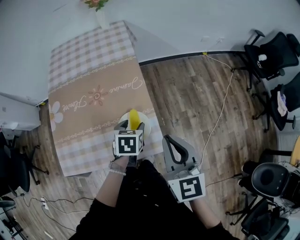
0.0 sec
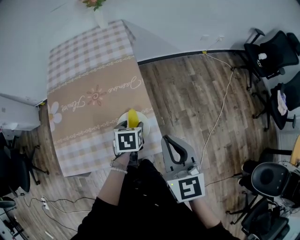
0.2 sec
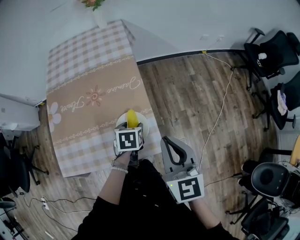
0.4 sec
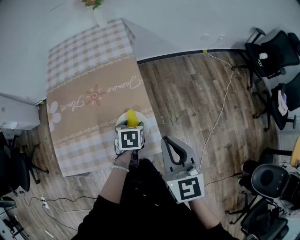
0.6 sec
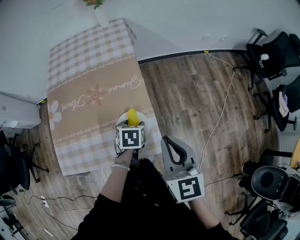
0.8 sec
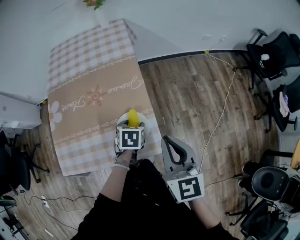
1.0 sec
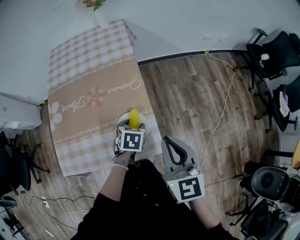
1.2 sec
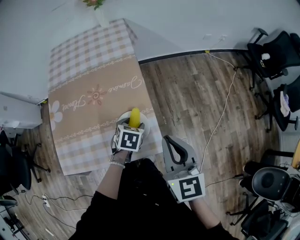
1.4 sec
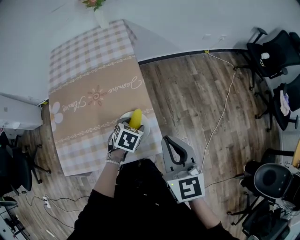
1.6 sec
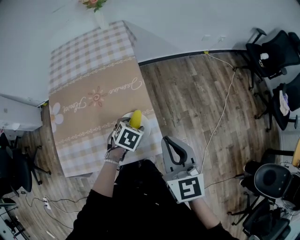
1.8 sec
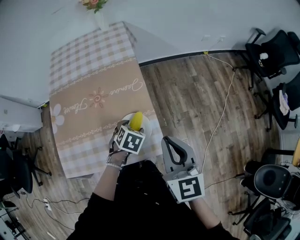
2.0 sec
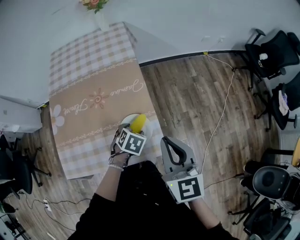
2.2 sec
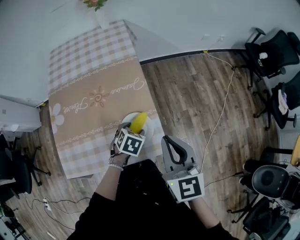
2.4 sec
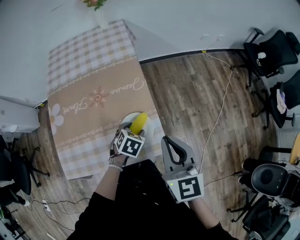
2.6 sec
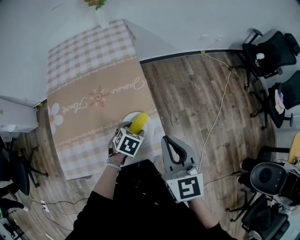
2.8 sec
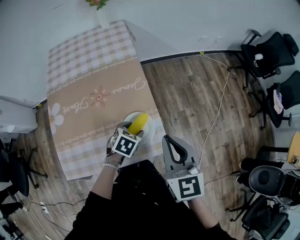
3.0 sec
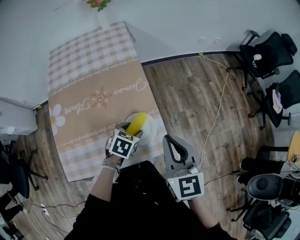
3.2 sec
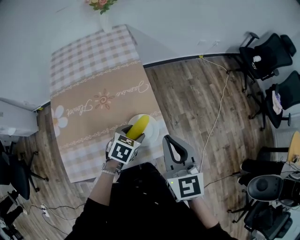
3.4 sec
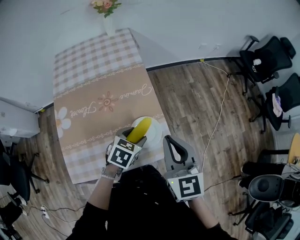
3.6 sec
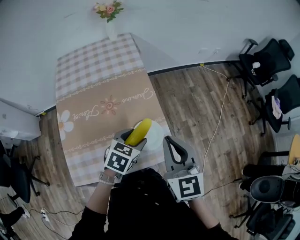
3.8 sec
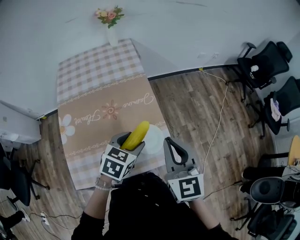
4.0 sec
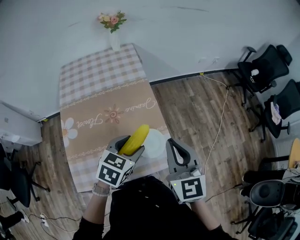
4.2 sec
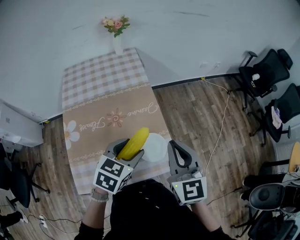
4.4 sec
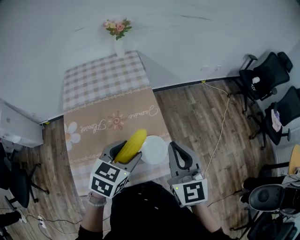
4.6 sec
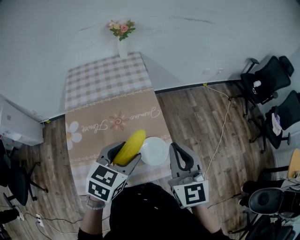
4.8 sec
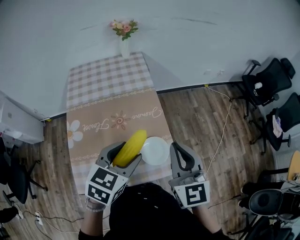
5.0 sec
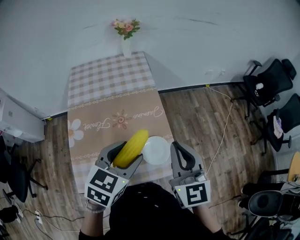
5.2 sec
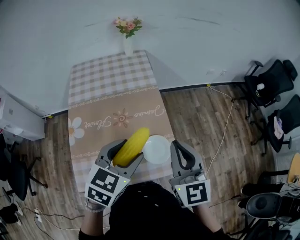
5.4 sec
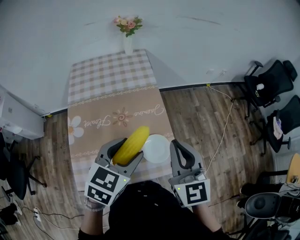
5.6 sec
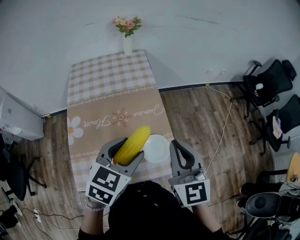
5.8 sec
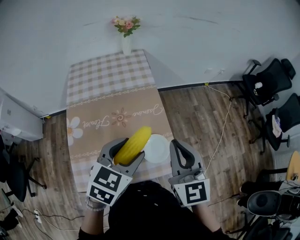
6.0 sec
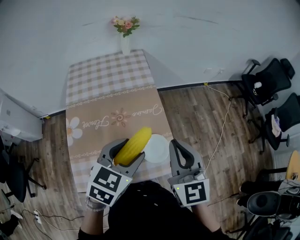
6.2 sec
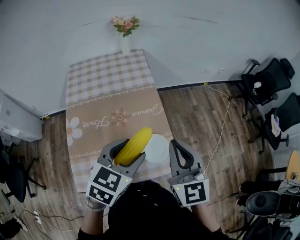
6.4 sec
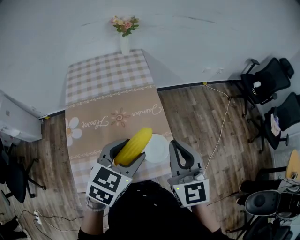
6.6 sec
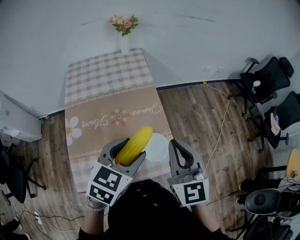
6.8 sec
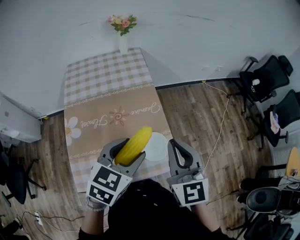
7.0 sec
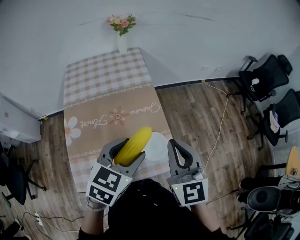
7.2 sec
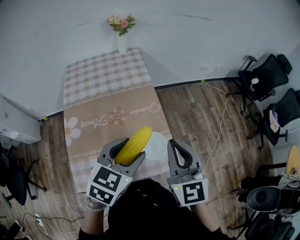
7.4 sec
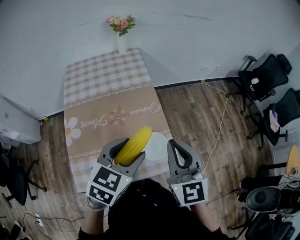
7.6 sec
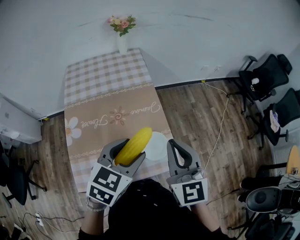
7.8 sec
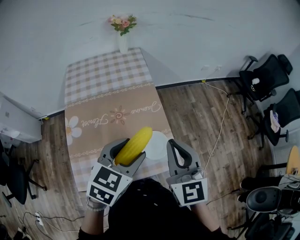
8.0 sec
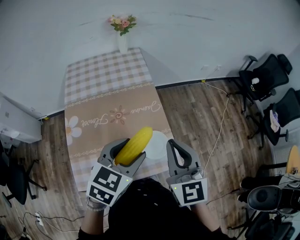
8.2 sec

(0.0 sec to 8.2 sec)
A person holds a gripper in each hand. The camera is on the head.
0.0 sec - 1.6 sec: The left gripper turns by roughly 20 degrees.
1.6 sec - 3.2 sec: There are only small adjustments of the grippers.
3.2 sec - 5.0 sec: The right gripper is displaced upward and to the left by about 10 cm; the left gripper moves upward, some 25 cm, and changes its angle by roughly 20 degrees.
5.0 sec - 8.2 sec: There are only small adjustments of the grippers.

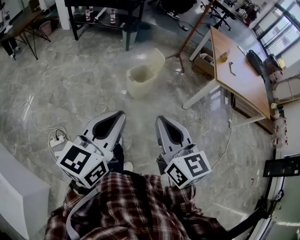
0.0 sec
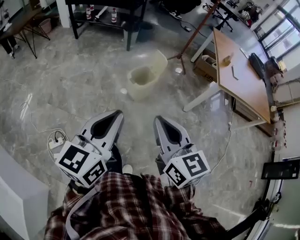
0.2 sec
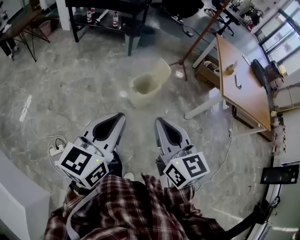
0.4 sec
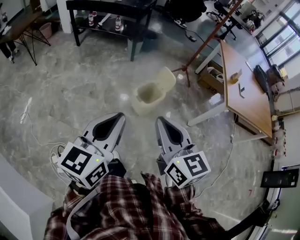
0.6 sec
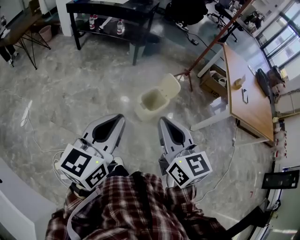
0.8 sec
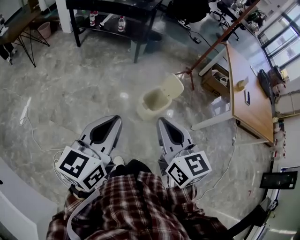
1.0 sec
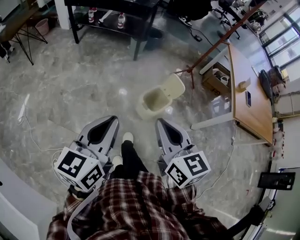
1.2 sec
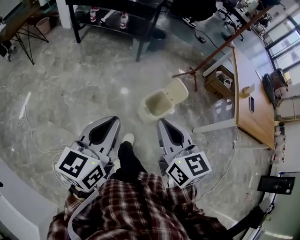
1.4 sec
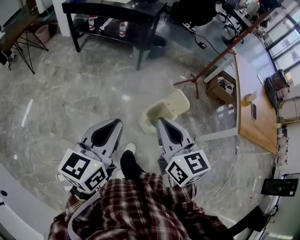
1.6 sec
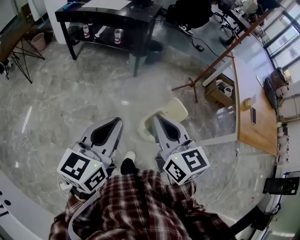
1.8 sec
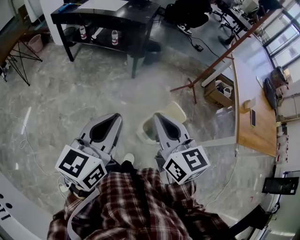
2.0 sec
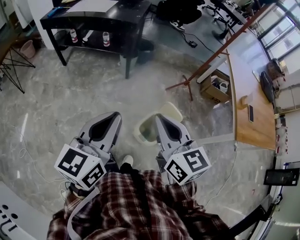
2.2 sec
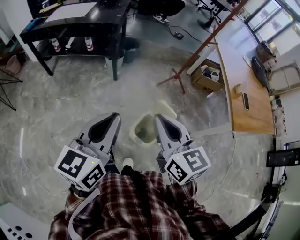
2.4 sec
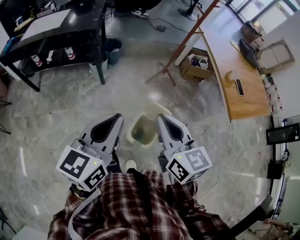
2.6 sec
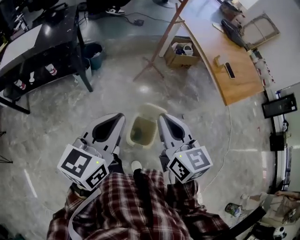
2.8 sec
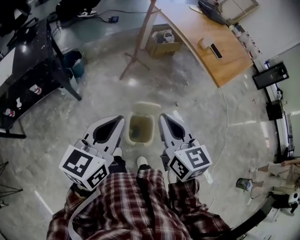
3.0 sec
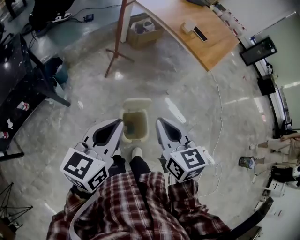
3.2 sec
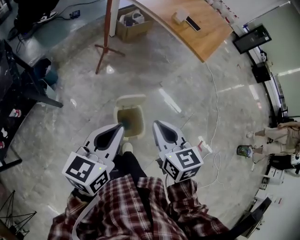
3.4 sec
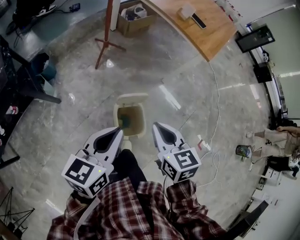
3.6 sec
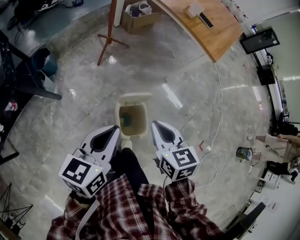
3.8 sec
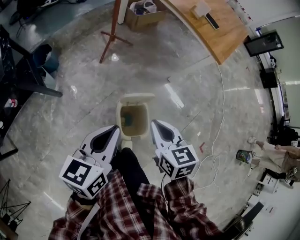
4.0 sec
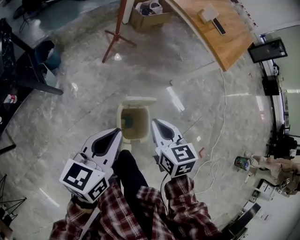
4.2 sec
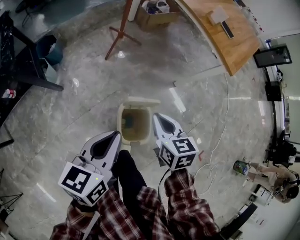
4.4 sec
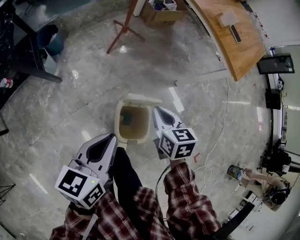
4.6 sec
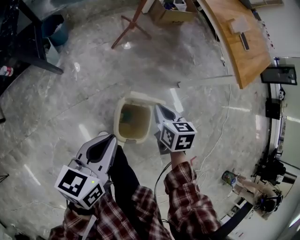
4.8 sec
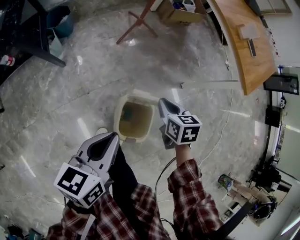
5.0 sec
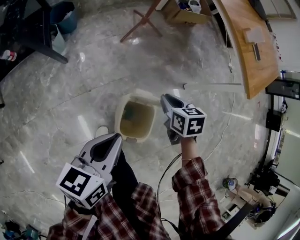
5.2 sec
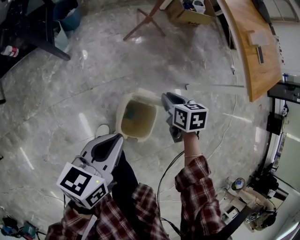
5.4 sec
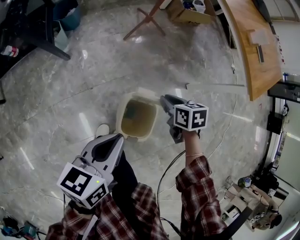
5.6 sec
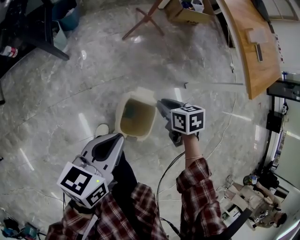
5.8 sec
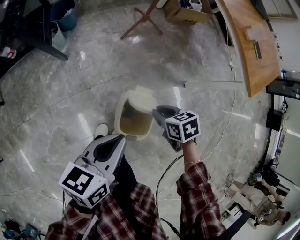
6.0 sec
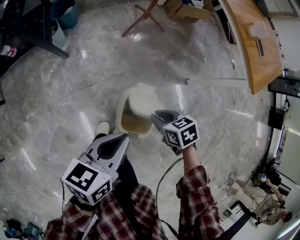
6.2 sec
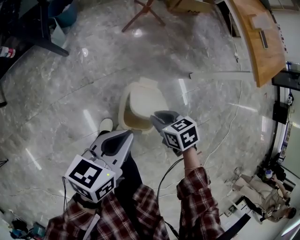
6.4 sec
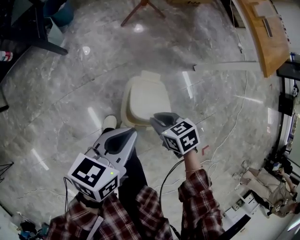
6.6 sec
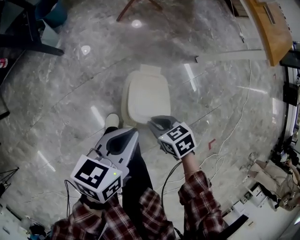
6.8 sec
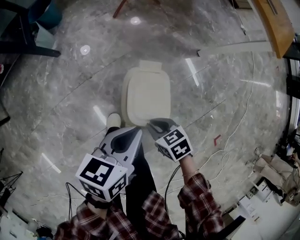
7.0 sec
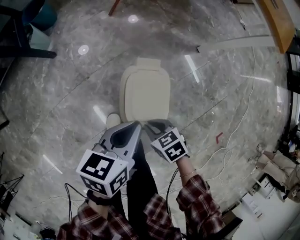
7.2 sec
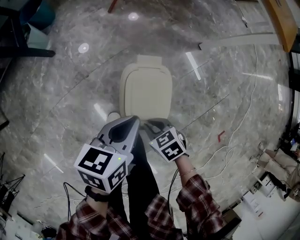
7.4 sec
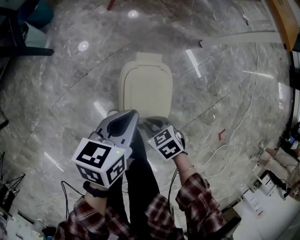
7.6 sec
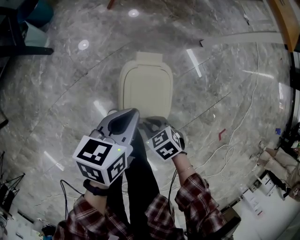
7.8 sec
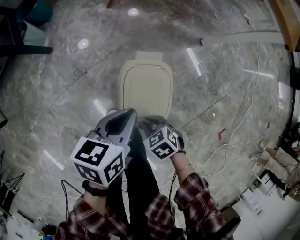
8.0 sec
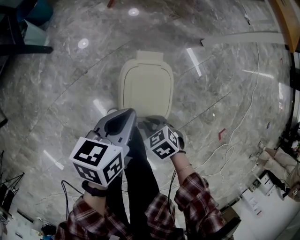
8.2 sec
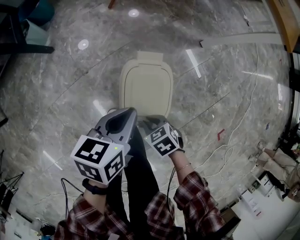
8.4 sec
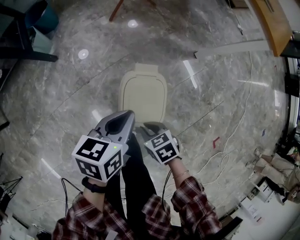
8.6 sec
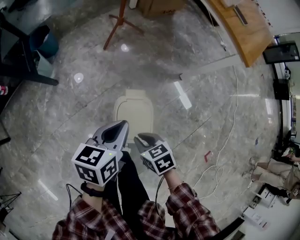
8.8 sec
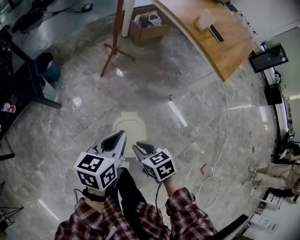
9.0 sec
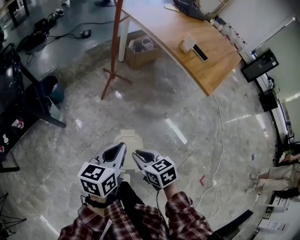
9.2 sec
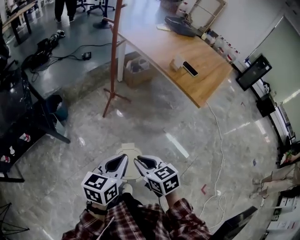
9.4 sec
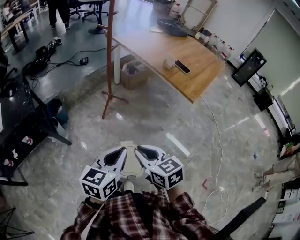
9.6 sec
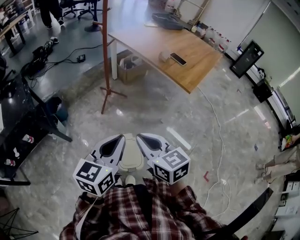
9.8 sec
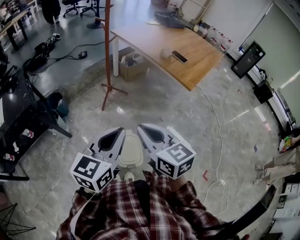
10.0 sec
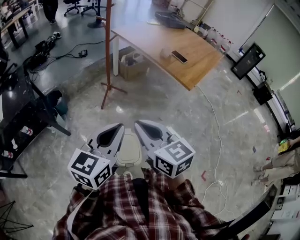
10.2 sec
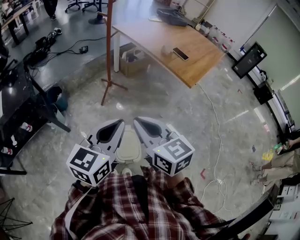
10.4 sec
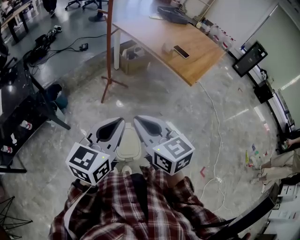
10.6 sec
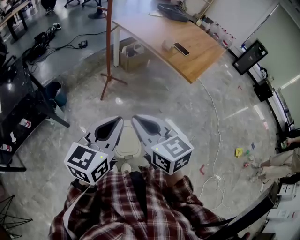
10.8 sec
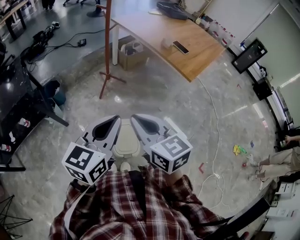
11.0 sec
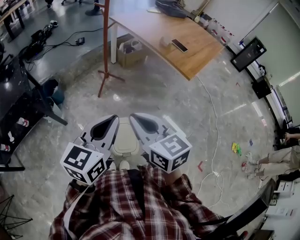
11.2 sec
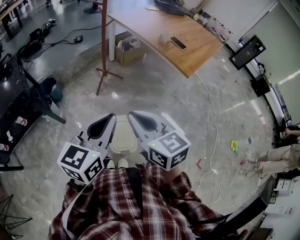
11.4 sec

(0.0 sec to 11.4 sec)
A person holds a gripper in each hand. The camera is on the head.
0.0 sec - 1.4 sec: Both grippers are carried forward and to the left, roughly 40 cm.
1.4 sec - 2.8 sec: The right gripper ends up about 35 cm from where it was, and swivels roughly 40 degrees; the left gripper moves roughly 40 cm, and rotates roughly 40 degrees.
2.8 sec - 4.2 sec: Both grippers move downward, some 20 cm. The left gripper rotates approximately 30 degrees, while the right gripper turns by some 30 degrees.
4.2 sec - 5.6 sec: The left gripper moves downward, some 10 cm; the right gripper moves downward and forward, roughly 20 cm, and rotates roughly 30 degrees.
5.6 sec - 7.2 sec: The right gripper goes approximately 30 cm backward and downward; the left gripper is displaced downward and to the right by roughly 20 cm.
7.2 sec - 8.6 sec: There are only small adjustments of the grippers.
8.6 sec - 10.0 sec: Both grippers travel together upward, about 50 cm. The left gripper changes its angle by some 40 degrees; the right gripper angles its fingers upward, by some 50 degrees.
10.0 sec - 11.4 sec: The grippers stay close to where they were, moving slightly.

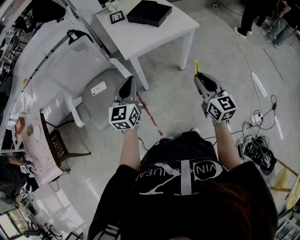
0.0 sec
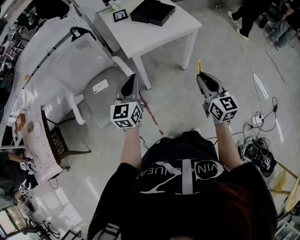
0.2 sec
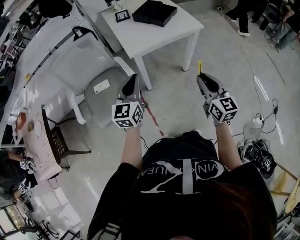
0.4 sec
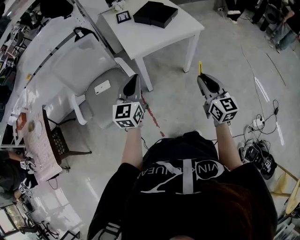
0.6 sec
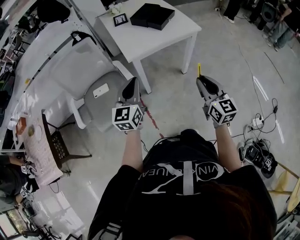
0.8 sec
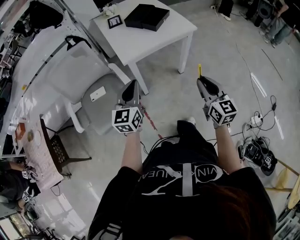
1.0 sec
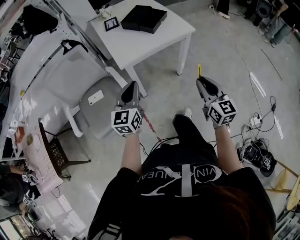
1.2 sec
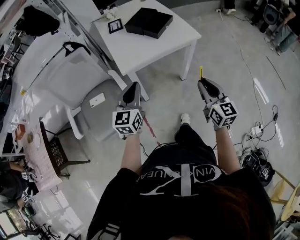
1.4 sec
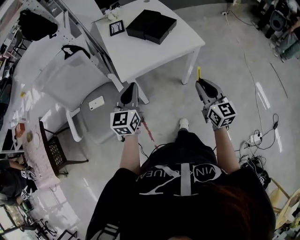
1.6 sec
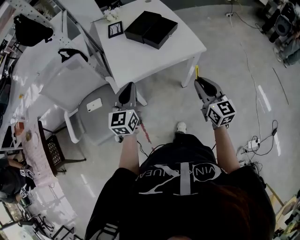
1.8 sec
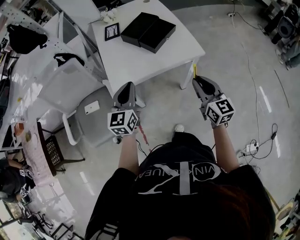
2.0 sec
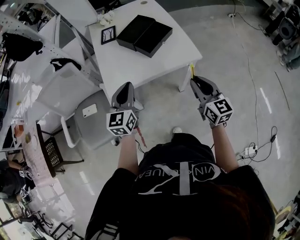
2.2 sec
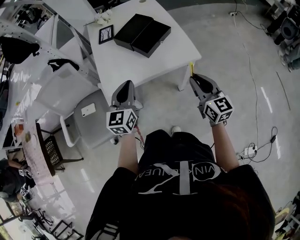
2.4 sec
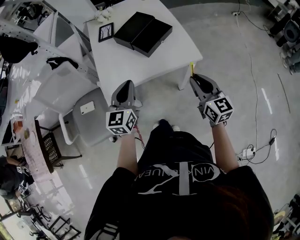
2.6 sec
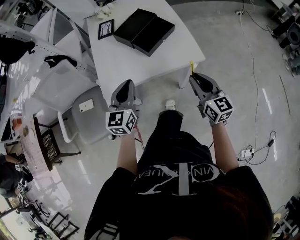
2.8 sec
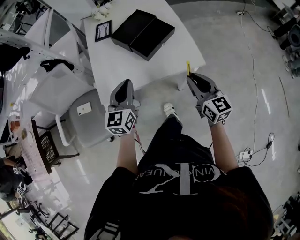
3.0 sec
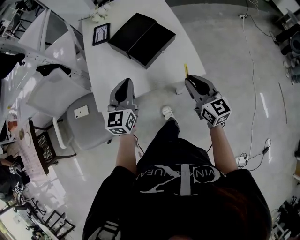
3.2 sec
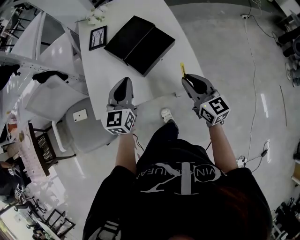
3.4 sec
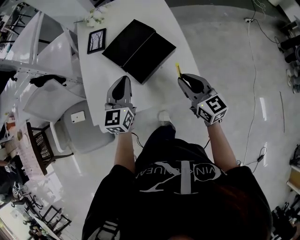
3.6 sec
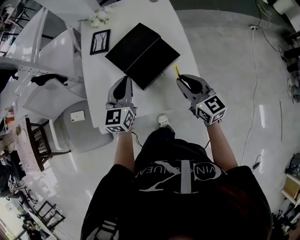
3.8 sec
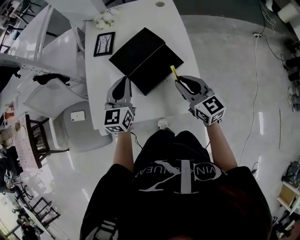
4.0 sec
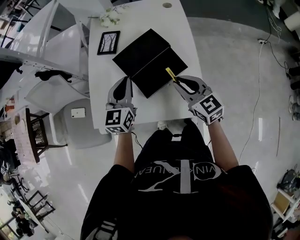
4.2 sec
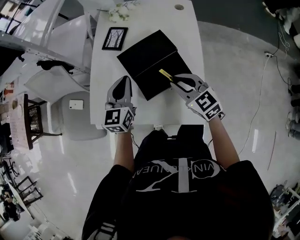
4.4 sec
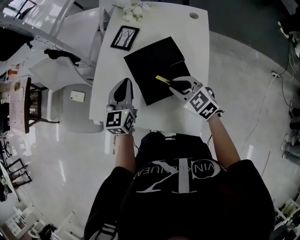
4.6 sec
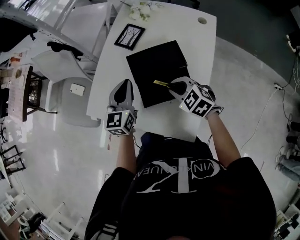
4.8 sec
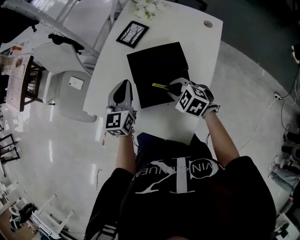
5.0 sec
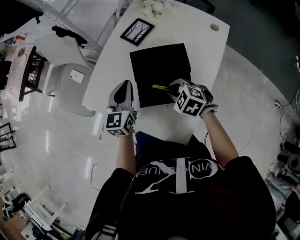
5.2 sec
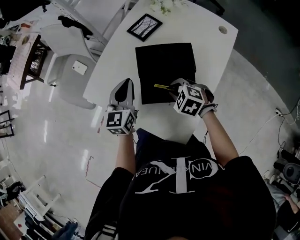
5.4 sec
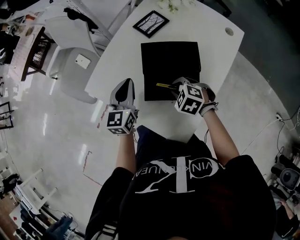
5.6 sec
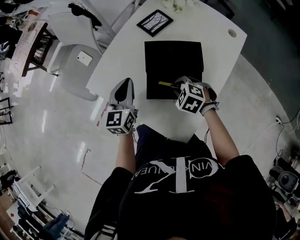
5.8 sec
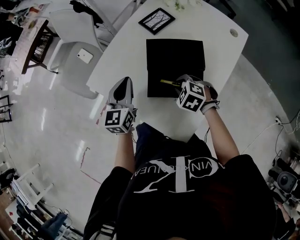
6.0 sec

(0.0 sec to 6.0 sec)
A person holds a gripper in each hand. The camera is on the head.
0.0 sec - 1.6 sec: The grippers both shift forward by some 15 cm.
1.6 sec - 3.0 sec: The left gripper goes approximately 20 cm forward and to the right, while the right gripper is displaced forward by roughly 20 cm.
3.0 sec - 4.4 sec: The right gripper shifts by roughly 25 cm, and rotates about 50 degrees. Meanwhile the left gripper ends up roughly 20 cm from where it was.
4.4 sec - 6.0 sec: The left gripper ends up roughly 10 cm from where it was, and rotates about 30 degrees, while the right gripper moves downward, approximately 15 cm, and tips its fingers downward by roughly 40 degrees.
